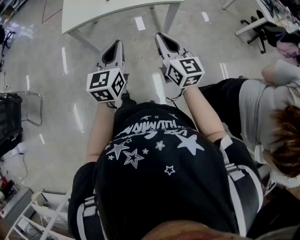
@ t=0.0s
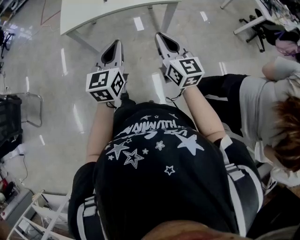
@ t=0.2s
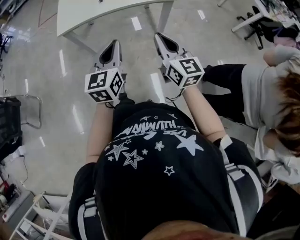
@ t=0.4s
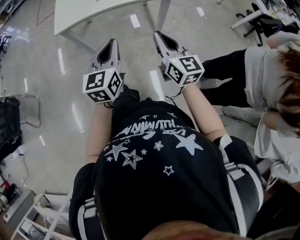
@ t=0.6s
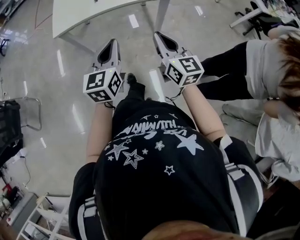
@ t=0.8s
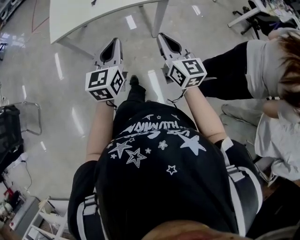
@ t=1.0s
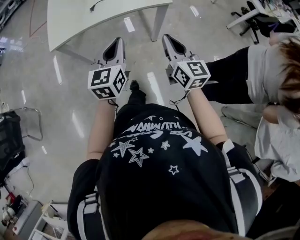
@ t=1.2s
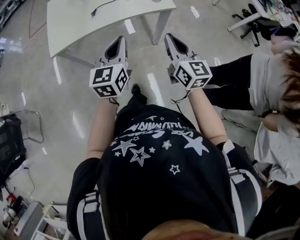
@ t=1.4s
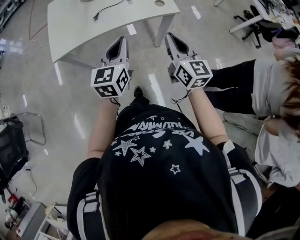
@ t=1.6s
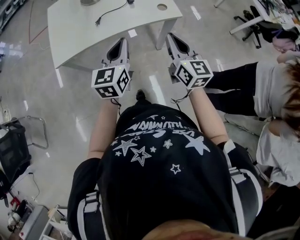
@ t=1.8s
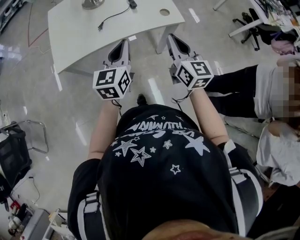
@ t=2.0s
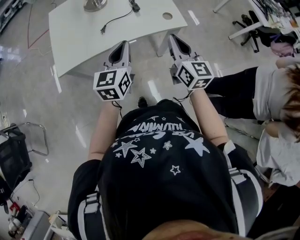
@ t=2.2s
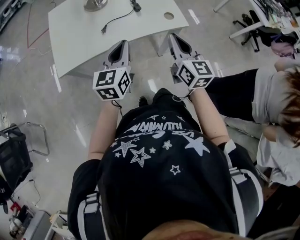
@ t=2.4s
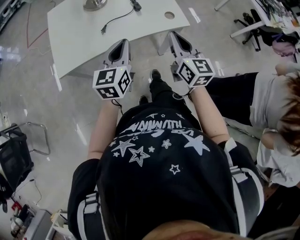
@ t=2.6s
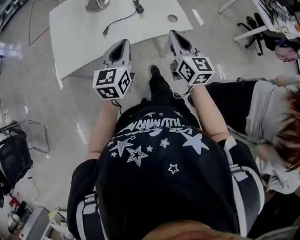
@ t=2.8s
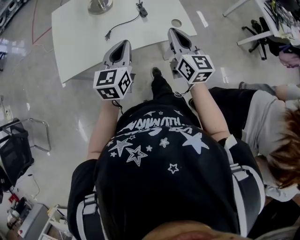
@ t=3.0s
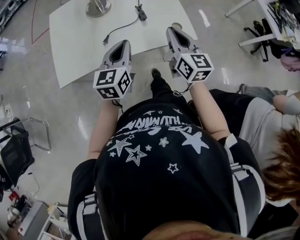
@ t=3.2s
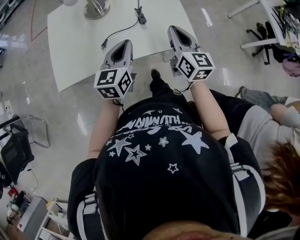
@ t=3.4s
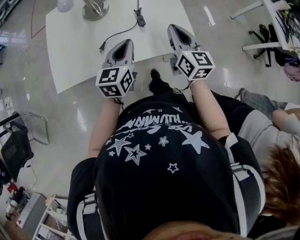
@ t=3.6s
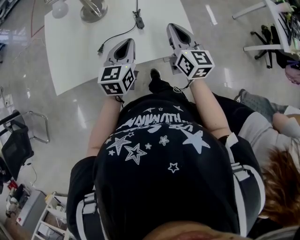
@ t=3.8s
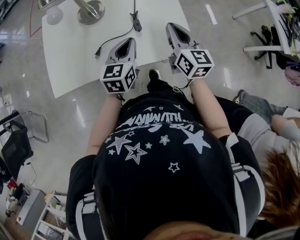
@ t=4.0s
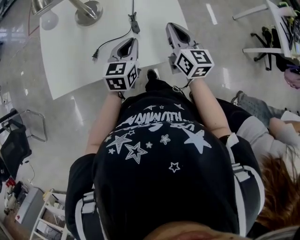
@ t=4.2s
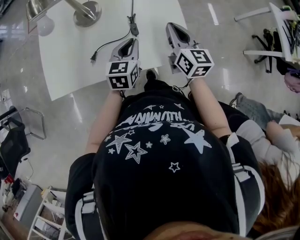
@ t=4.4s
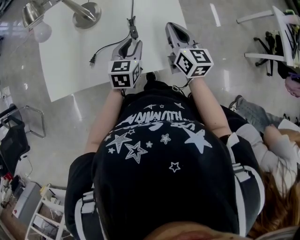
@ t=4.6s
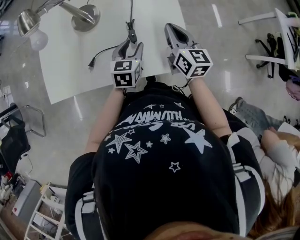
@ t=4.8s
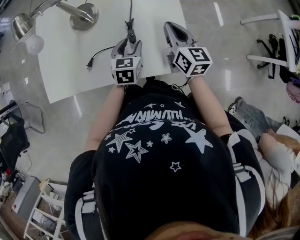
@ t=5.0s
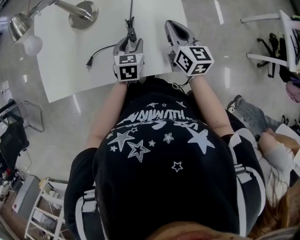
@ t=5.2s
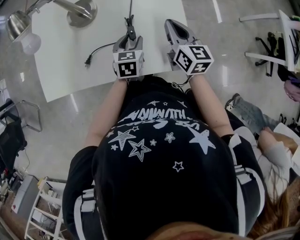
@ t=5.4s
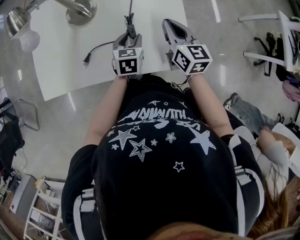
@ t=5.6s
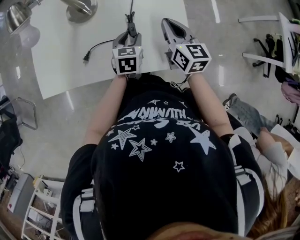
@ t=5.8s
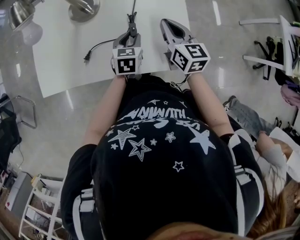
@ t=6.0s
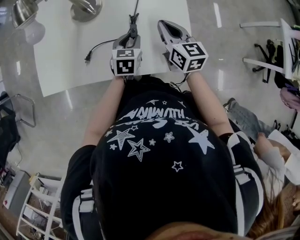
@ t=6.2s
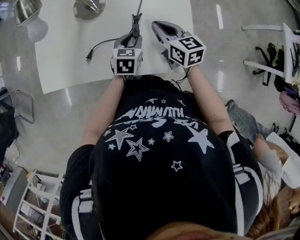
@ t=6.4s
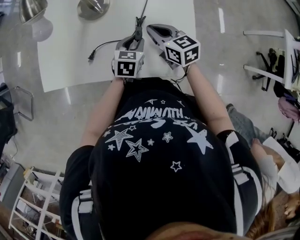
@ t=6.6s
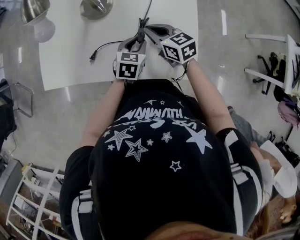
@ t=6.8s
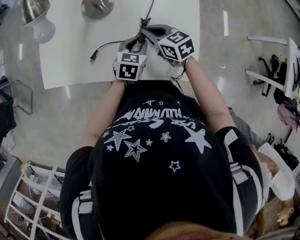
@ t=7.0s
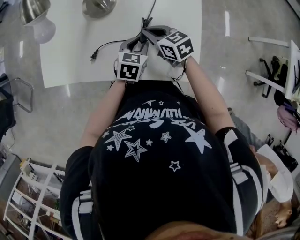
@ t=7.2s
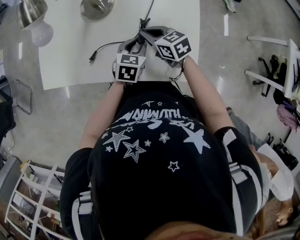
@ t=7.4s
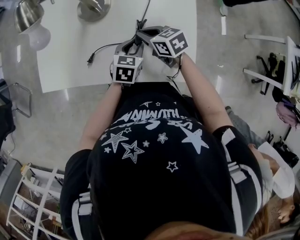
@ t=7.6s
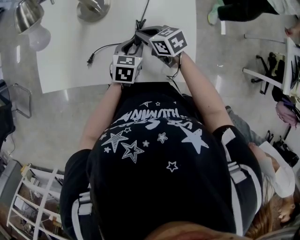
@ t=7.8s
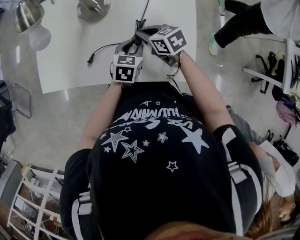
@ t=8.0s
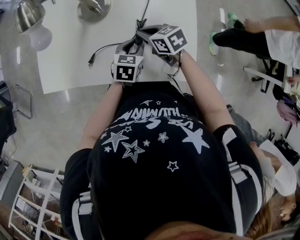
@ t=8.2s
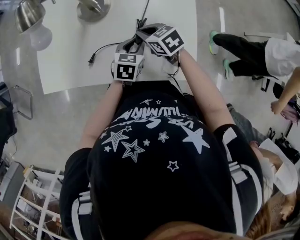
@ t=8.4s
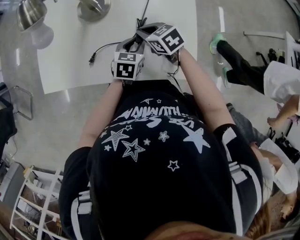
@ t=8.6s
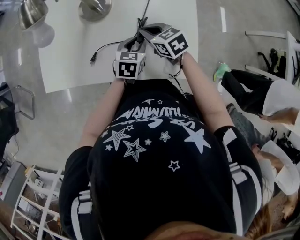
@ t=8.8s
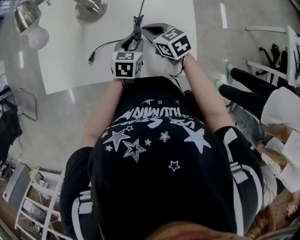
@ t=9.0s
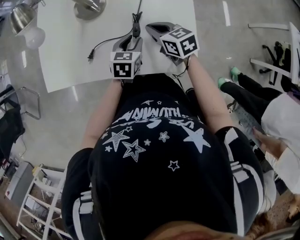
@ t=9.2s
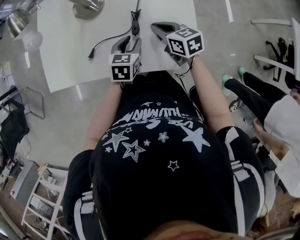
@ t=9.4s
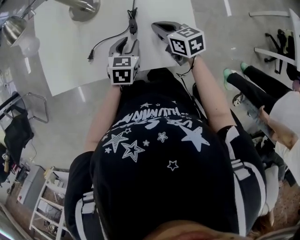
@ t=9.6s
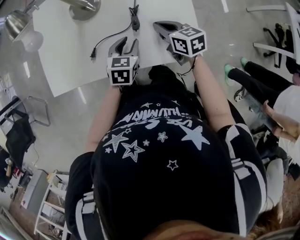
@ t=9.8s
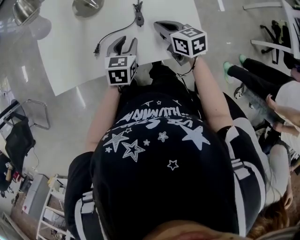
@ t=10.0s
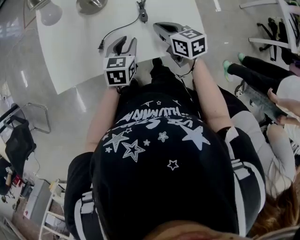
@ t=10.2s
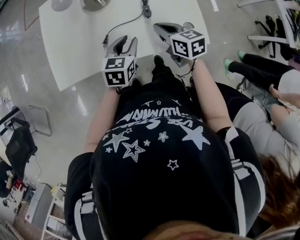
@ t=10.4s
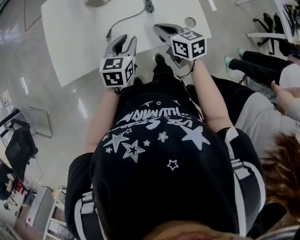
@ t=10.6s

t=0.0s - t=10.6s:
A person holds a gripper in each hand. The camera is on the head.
t=0.0s - t=1.6s: The left gripper travels forward by some 15 cm, while the right gripper heads forward and to the right, covering about 15 cm.
t=1.6s - t=3.0s: Both grippers travel together forward, some 15 cm.
t=3.0s - t=4.6s: The right gripper shifts about 20 cm forward. The left gripper goes approximately 25 cm forward, downward and to the right, and opens its fingers.
t=4.6s - t=6.0s: The left gripper goes approximately 5 cm downward; the right gripper moves roughly 5 cm.
t=6.0s - t=7.6s: The right gripper travels to the left and downward by about 15 cm, and changes its angle by some 40 degrees.
t=7.6s - t=9.0s: The grippers stay close to where they were, moving slightly.
t=9.0s - t=10.6s: The left gripper shifts approximately 20 cm to the left, backward and upward, while the right gripper moves backward and to the left, some 15 cm, and changes its angle by roughly 20 degrees.

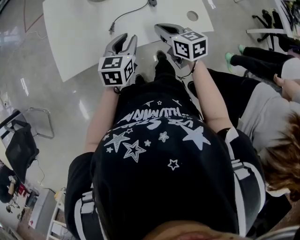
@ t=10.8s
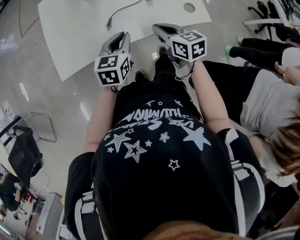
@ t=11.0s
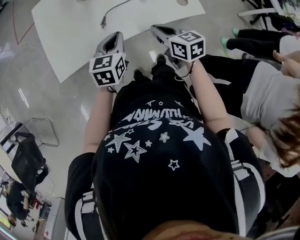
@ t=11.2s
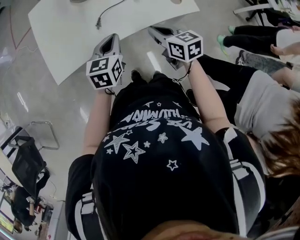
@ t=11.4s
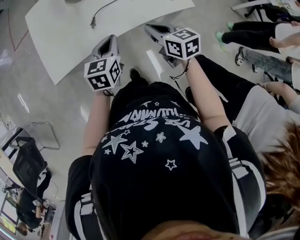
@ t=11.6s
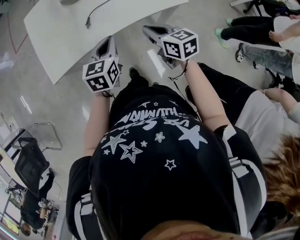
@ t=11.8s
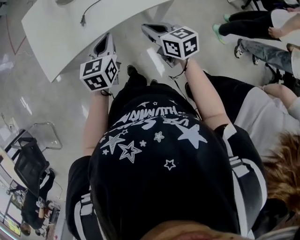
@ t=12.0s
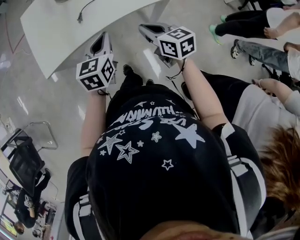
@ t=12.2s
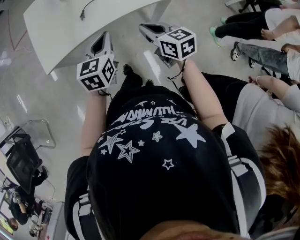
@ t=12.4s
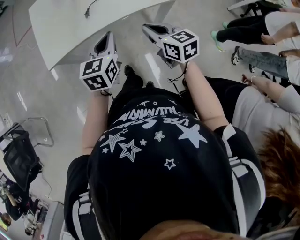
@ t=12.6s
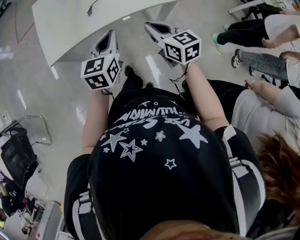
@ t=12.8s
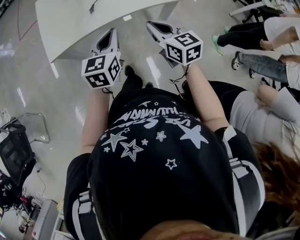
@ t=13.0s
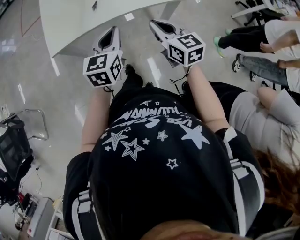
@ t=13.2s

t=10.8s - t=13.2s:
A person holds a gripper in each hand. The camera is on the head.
t=10.8s - t=12.0s: The grippers both shift backward by approximately 15 cm. The left gripper closes up.
t=12.0s - t=13.2s: The left gripper heads upward and backward, covering roughly 10 cm. Meanwhile the right gripper is displaced upward by roughly 10 cm.

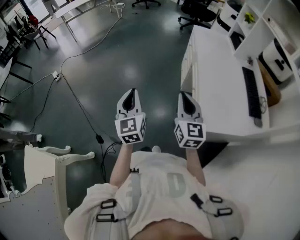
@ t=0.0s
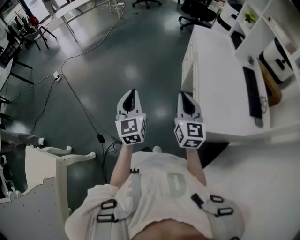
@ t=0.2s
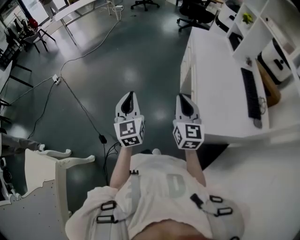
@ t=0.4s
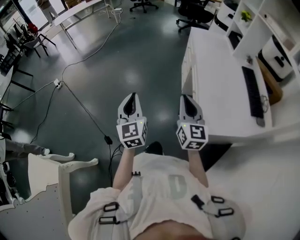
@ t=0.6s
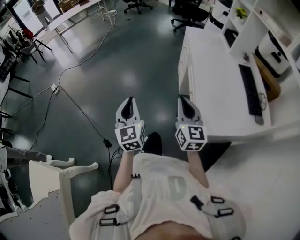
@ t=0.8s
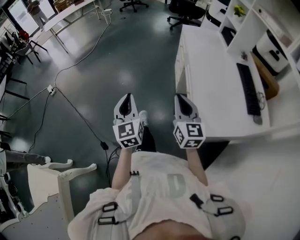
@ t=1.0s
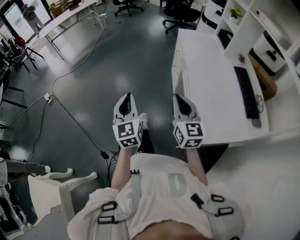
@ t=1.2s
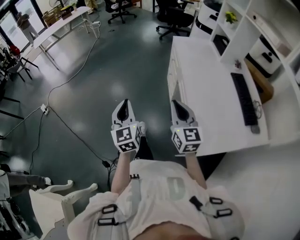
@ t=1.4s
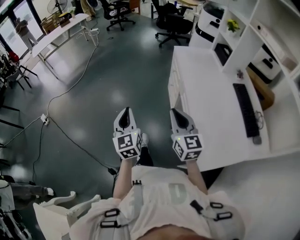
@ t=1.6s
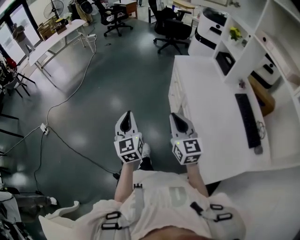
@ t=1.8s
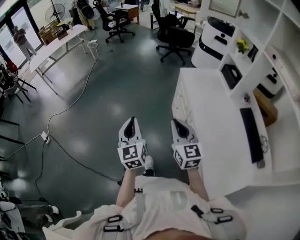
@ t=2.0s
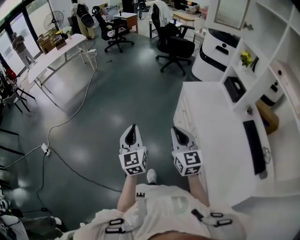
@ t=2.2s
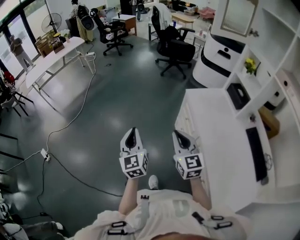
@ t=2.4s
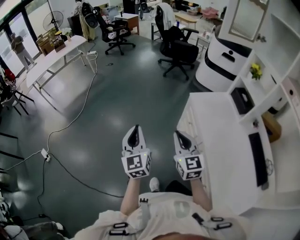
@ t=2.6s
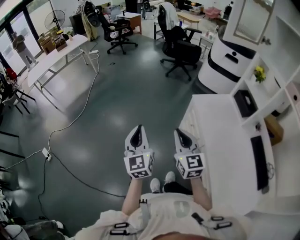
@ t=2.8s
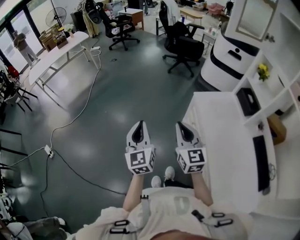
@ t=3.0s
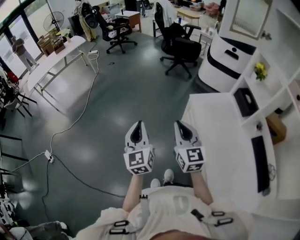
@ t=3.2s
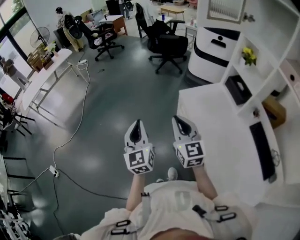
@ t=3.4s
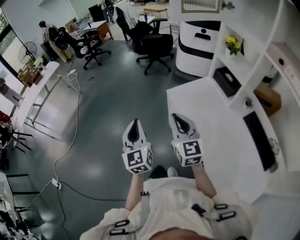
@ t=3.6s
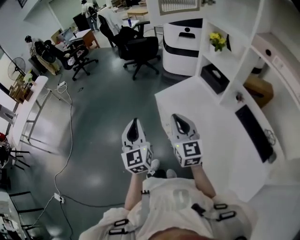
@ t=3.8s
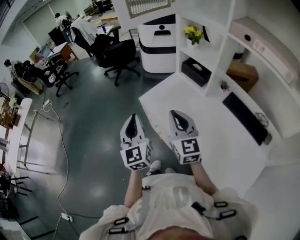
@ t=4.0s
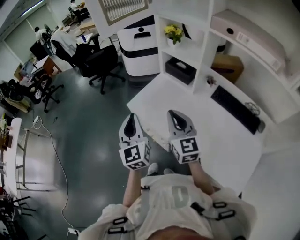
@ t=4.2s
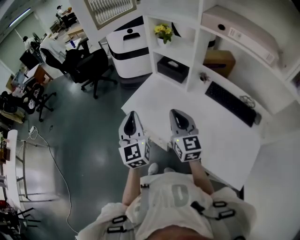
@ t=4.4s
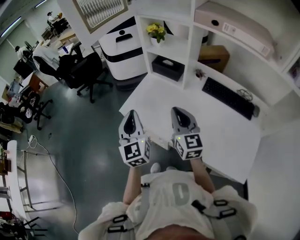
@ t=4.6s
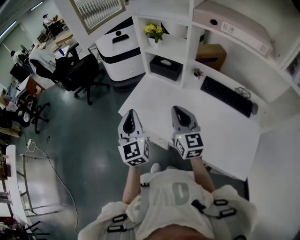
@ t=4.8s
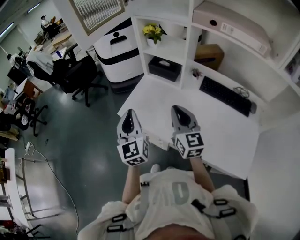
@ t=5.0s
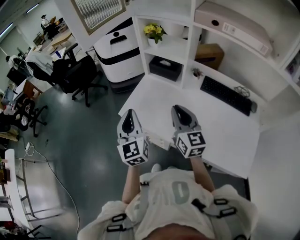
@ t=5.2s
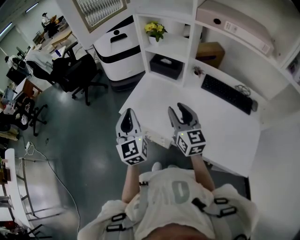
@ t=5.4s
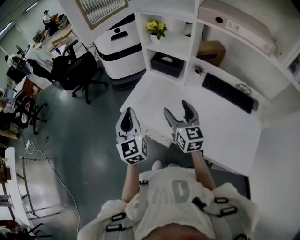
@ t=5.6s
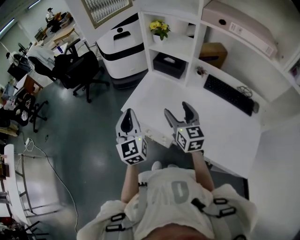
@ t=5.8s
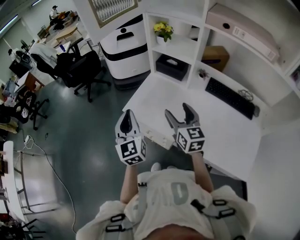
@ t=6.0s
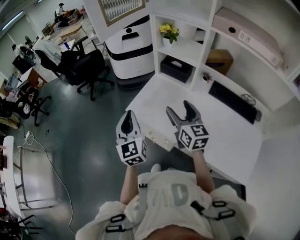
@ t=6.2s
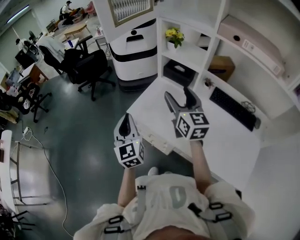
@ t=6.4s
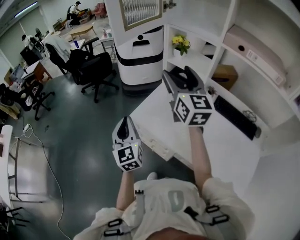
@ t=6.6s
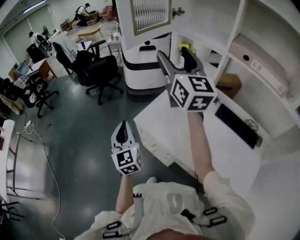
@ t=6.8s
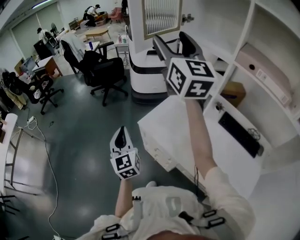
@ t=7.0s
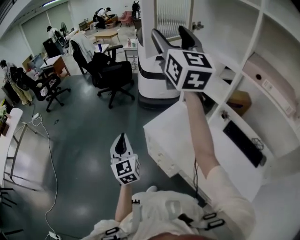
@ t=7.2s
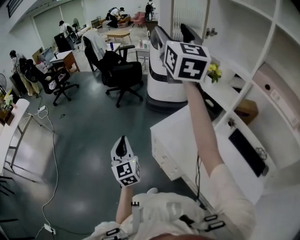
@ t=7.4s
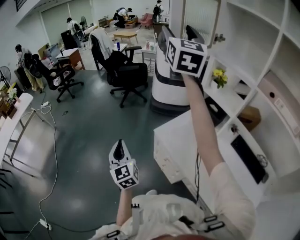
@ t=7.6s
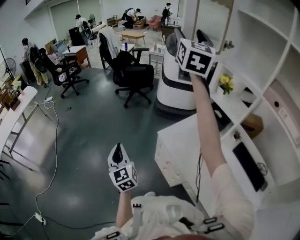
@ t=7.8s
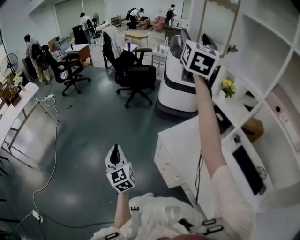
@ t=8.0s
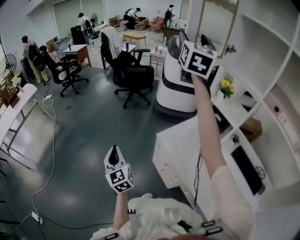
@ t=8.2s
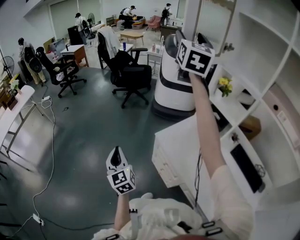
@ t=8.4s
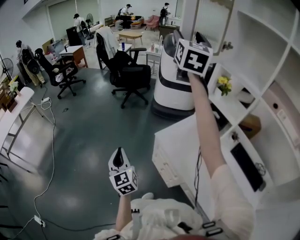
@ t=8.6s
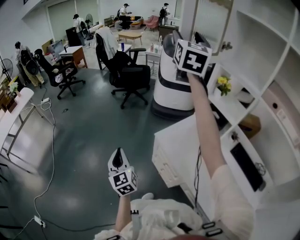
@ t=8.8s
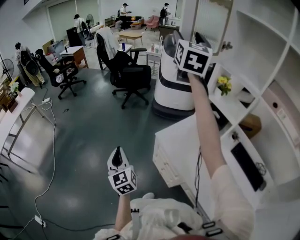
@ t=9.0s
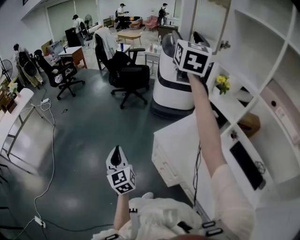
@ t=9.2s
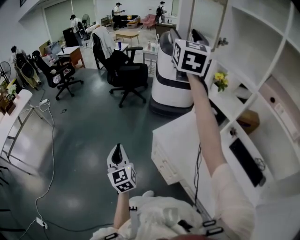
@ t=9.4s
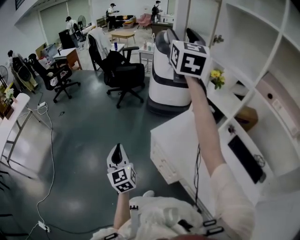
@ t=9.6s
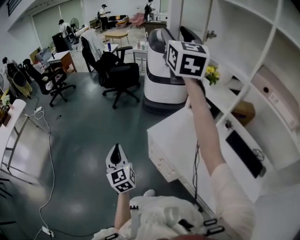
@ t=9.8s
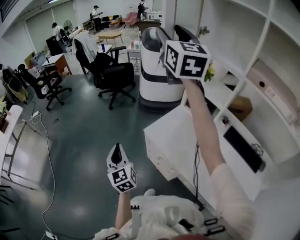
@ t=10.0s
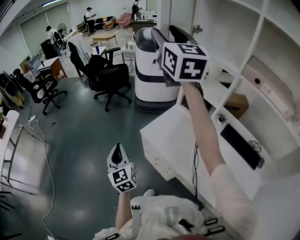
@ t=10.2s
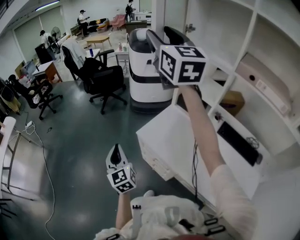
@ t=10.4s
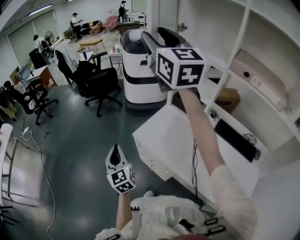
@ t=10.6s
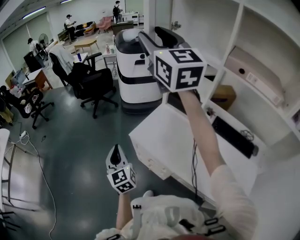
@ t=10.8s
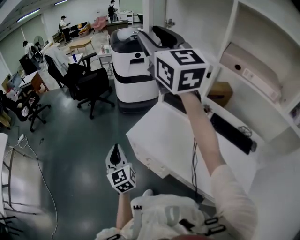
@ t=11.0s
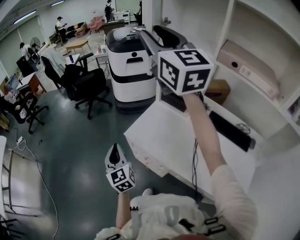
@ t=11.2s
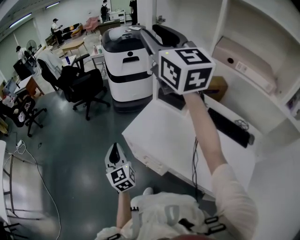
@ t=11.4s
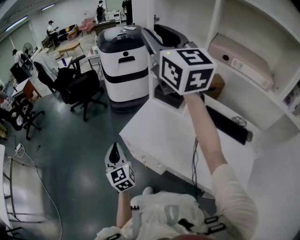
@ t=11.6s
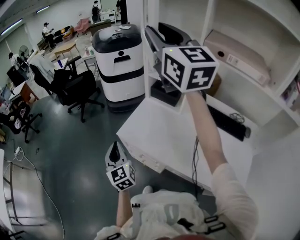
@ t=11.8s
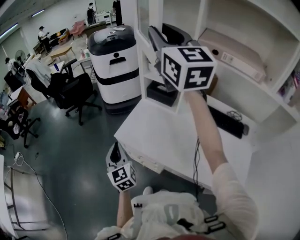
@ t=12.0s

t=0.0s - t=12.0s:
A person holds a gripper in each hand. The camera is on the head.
t=0.0s - t=1.6s: The two grippers go approximately 20 cm forward.
t=1.6s - t=3.0s: The grippers both shift forward by about 40 cm.
t=3.0s - t=4.4s: The left gripper changes place by roughly 35 cm, and swivels approximately 40 degrees. The right gripper shifts by some 30 cm, and changes its angle by about 40 degrees.
t=4.4s - t=6.0s: The left gripper heads to the left, covering roughly 5 cm. Meanwhile the right gripper opens its fingers.
t=6.0s - t=7.6s: The right gripper heads upward, forward and to the left, covering approximately 50 cm, and turns by about 30 degrees, while the left gripper shifts approximately 20 cm to the left, and turns by approximately 30 degrees.
t=7.6s - t=9.0s: The grippers move only a little.
t=9.0s - t=10.4s: The right gripper heads backward, covering about 10 cm; the left gripper heads to the right, covering about 10 cm.
t=10.4s - t=12.0s: The right gripper travels to the right and backward by approximately 15 cm, and closes its fingers, while the left gripper goes some 10 cm to the right.
